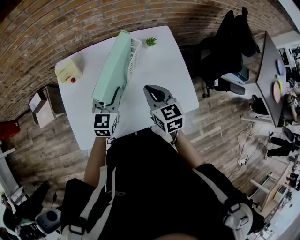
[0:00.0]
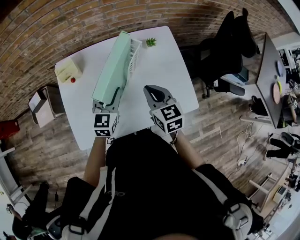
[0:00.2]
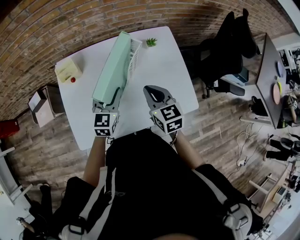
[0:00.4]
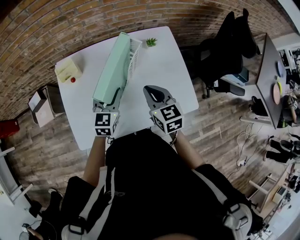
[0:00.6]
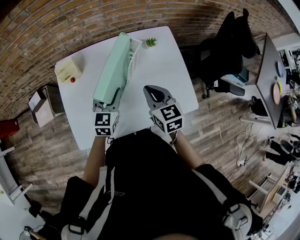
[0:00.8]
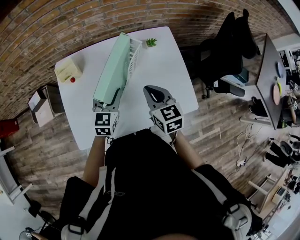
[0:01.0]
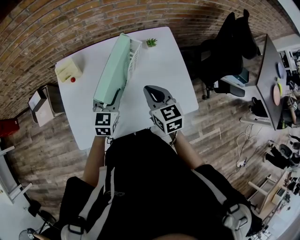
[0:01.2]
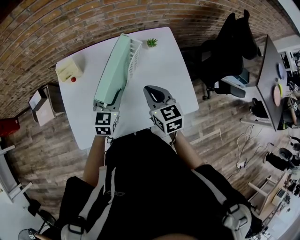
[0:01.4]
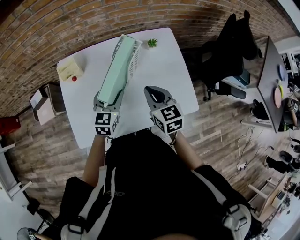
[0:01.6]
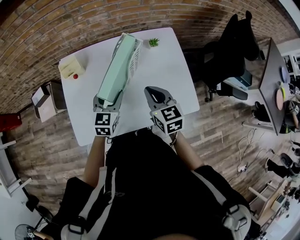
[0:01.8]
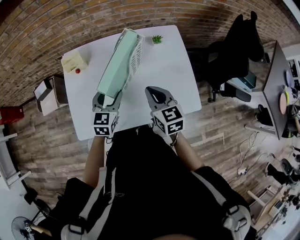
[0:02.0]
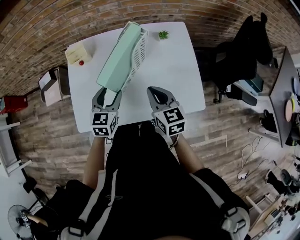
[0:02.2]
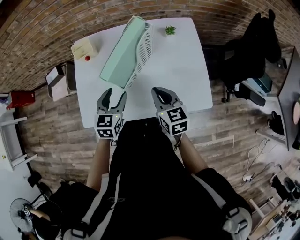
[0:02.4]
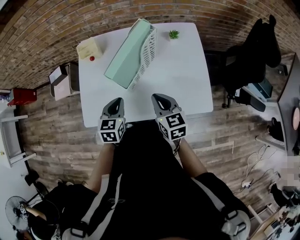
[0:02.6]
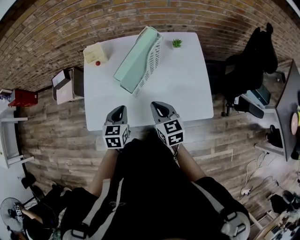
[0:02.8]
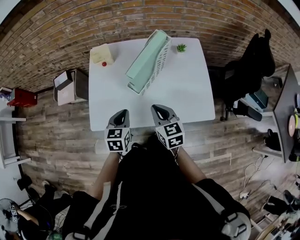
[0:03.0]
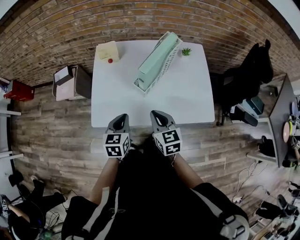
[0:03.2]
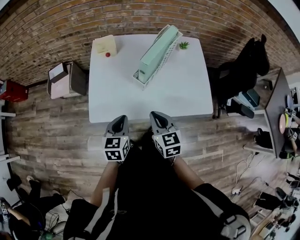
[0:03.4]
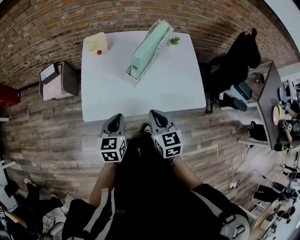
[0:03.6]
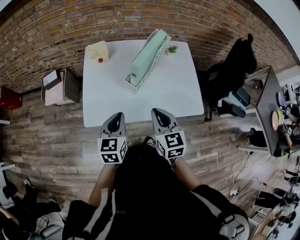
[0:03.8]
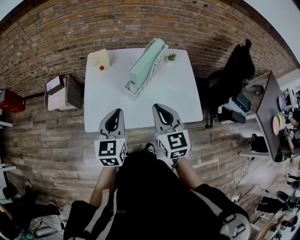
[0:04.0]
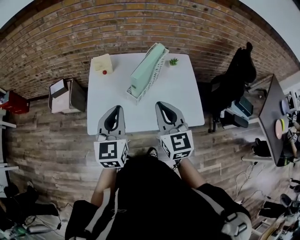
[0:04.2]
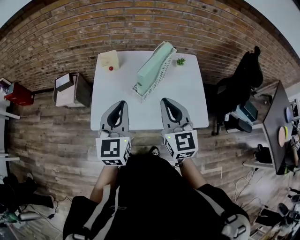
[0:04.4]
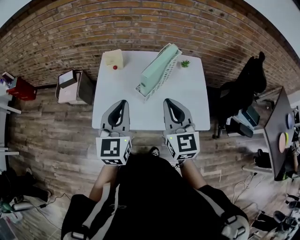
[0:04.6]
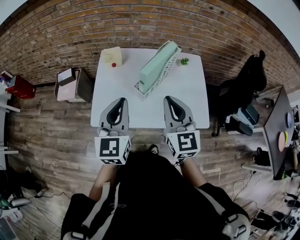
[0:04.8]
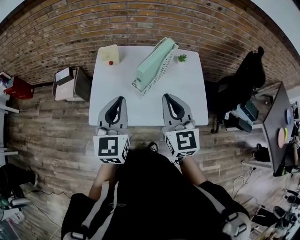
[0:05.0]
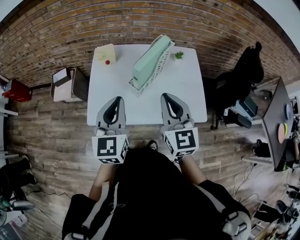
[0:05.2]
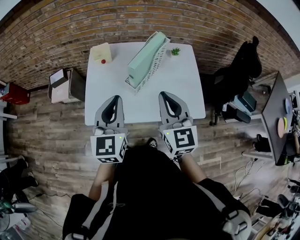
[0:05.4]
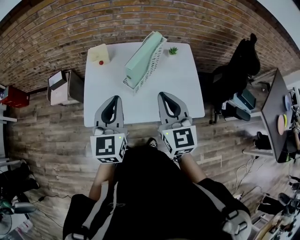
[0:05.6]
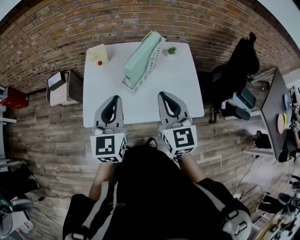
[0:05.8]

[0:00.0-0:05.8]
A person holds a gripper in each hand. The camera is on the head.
0:00.0 to 0:01.4: The grippers stay close to where they were, moving slightly.
0:01.4 to 0:02.8: The right gripper goes some 10 cm backward, while the left gripper moves backward and to the left, about 15 cm, swivels some 20 degrees, and closes.
0:02.8 to 0:04.4: Both grippers move upward, some 20 cm. The right gripper rotates roughly 30 degrees, while the left gripper angles its fingers upward, by about 30 degrees.
0:04.4 to 0:05.8: The grippers move only a little.

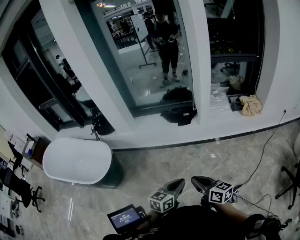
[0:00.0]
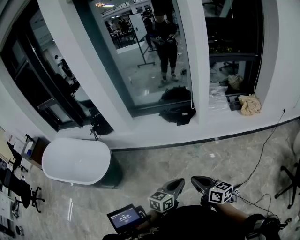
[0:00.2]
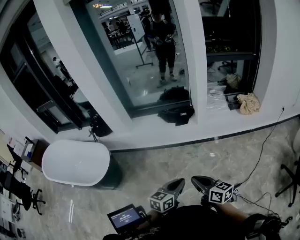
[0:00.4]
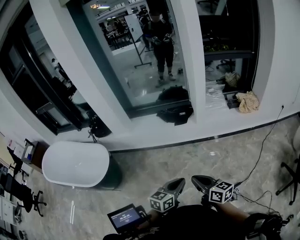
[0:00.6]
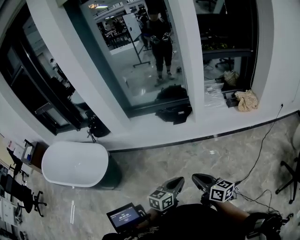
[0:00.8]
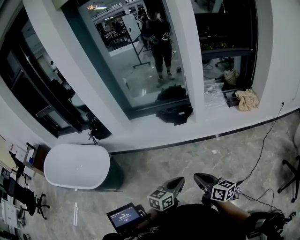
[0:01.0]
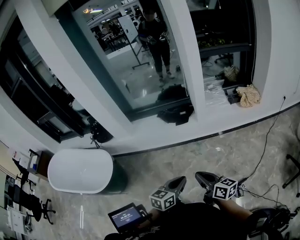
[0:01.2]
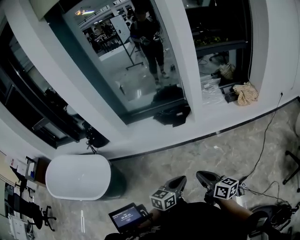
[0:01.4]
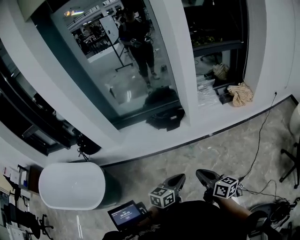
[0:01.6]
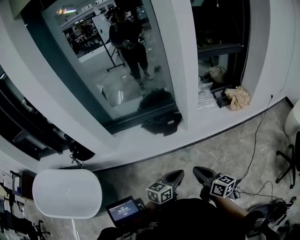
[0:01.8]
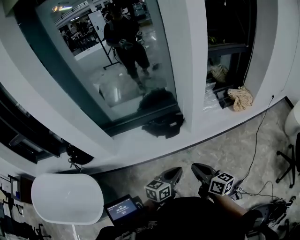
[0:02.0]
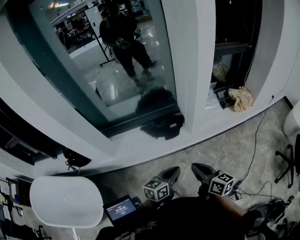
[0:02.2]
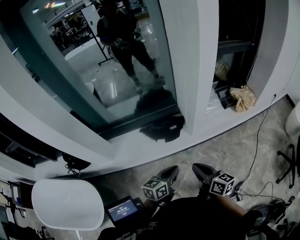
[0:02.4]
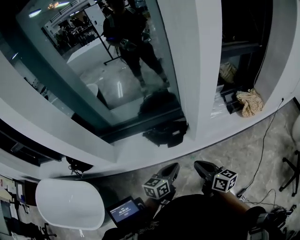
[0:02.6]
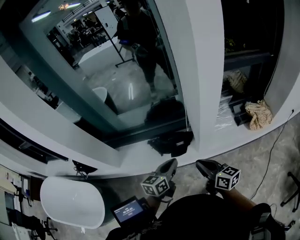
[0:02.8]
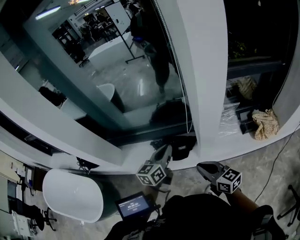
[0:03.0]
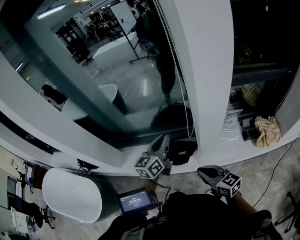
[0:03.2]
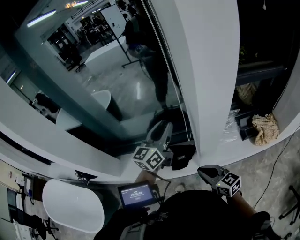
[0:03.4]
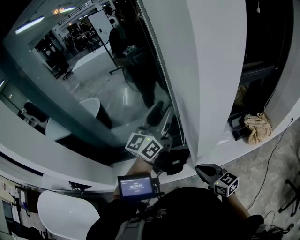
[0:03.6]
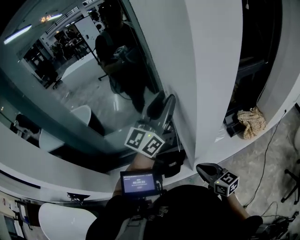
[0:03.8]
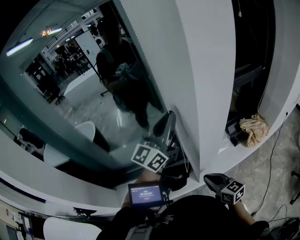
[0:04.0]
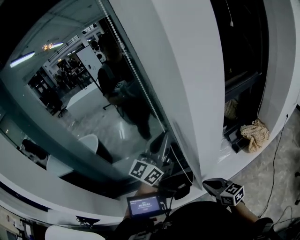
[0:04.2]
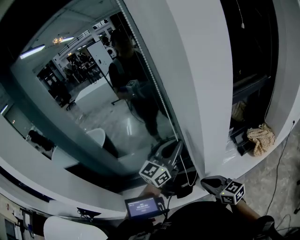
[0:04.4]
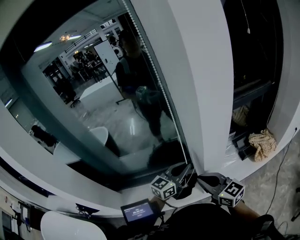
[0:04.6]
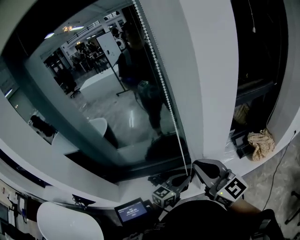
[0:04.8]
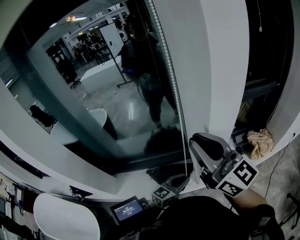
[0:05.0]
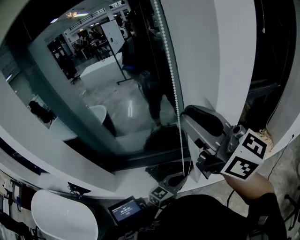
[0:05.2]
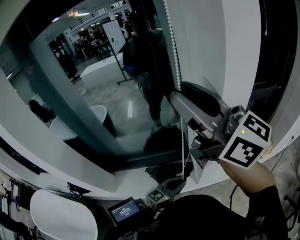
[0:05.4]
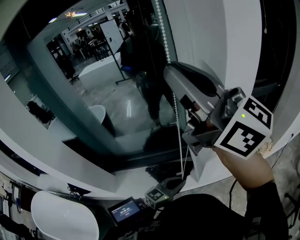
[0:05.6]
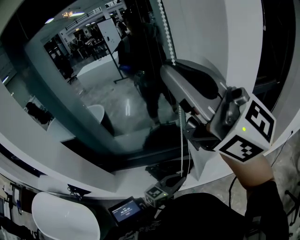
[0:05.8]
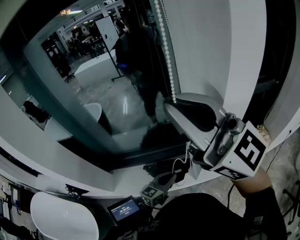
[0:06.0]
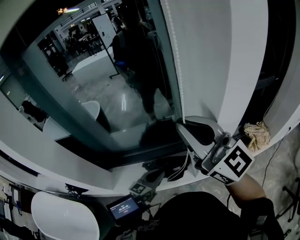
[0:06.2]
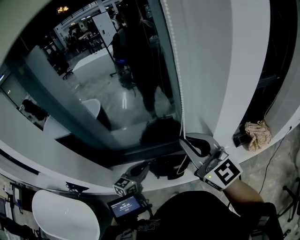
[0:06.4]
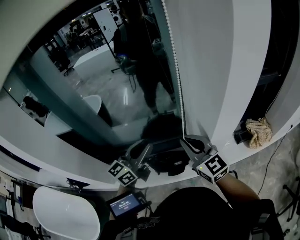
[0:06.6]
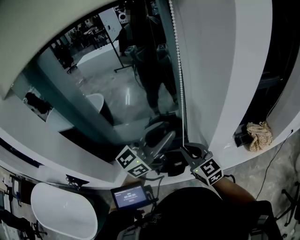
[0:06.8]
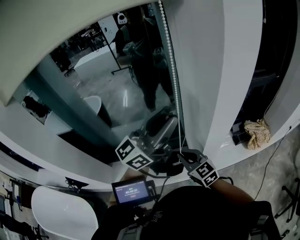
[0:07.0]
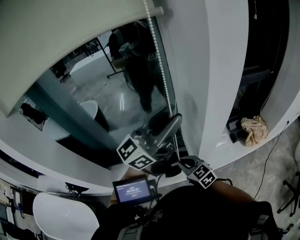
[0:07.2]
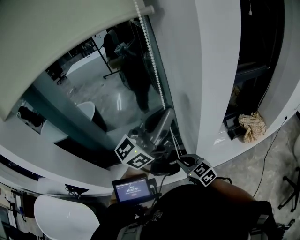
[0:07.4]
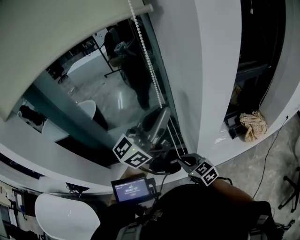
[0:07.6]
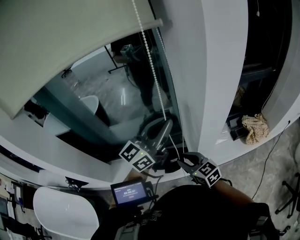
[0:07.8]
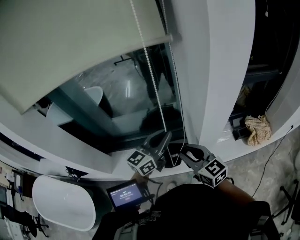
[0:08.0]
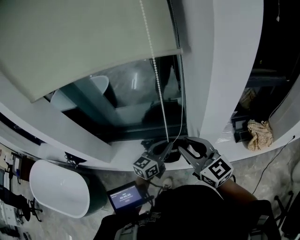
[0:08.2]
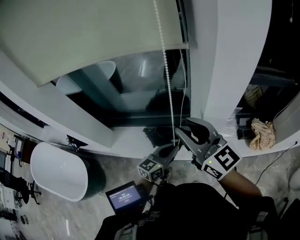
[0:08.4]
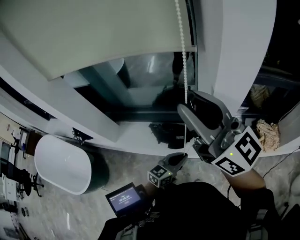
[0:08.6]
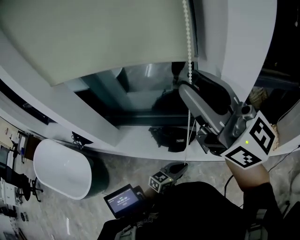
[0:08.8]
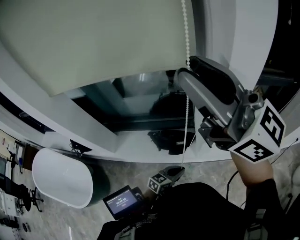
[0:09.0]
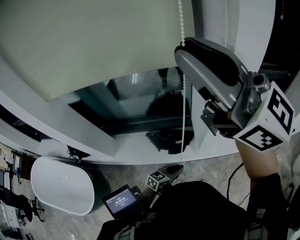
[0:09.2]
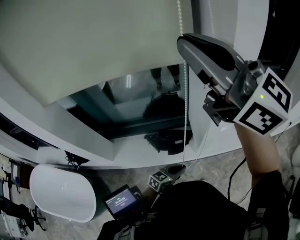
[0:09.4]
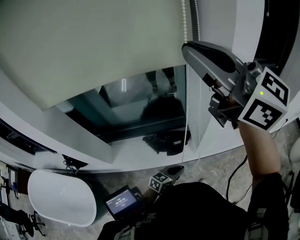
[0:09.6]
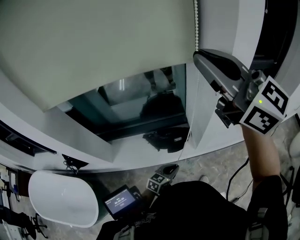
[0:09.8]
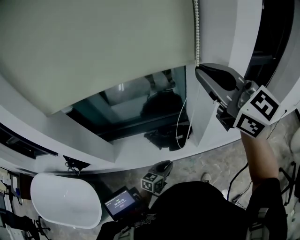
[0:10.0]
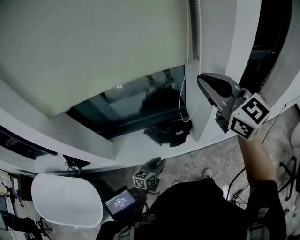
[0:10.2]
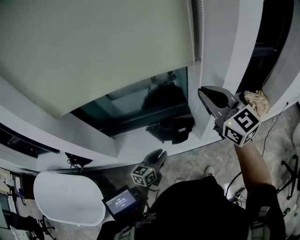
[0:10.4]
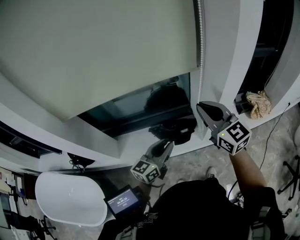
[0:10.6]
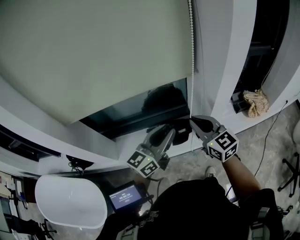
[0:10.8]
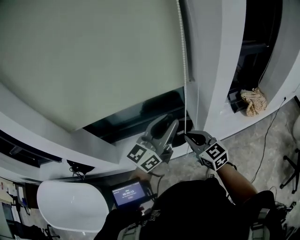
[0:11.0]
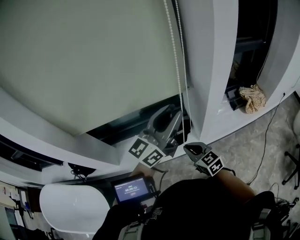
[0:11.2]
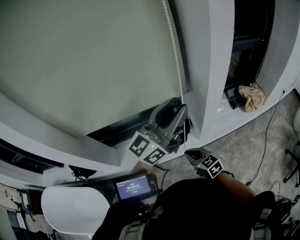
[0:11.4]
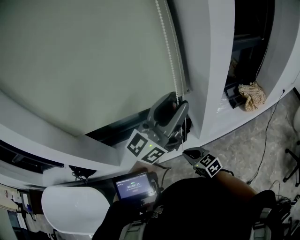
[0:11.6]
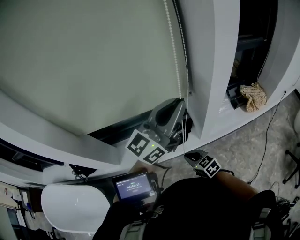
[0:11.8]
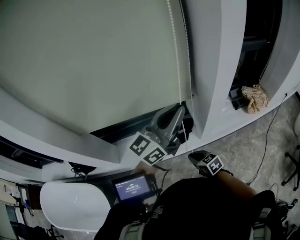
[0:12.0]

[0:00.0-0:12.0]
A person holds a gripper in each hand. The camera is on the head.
0:00.0 to 0:01.6: The grippers both shift forward by some 15 cm.
0:01.6 to 0:03.0: The left gripper ends up about 50 cm from where it was, and swivels approximately 20 degrees, while the right gripper moves some 40 cm, and swivels roughly 20 degrees.
0:03.0 to 0:04.4: The left gripper changes place by some 20 cm, rotates about 40 degrees, and opens and closes again; the right gripper changes place by approximately 10 cm.
0:04.4 to 0:06.0: The left gripper heads downward and backward, covering roughly 25 cm, and swivels some 30 degrees; the right gripper is displaced upward by some 40 cm, points its fingers roughly 40 degrees further upward, and opens and closes again.
0:06.0 to 0:07.6: The left gripper heads upward, covering about 35 cm, points its fingers some 40 degrees further upward, and opens, then closes once more; the right gripper heads downward, covering about 50 cm, and angles its fingers downward, by about 50 degrees.
0:07.6 to 0:09.0: The right gripper moves upward, roughly 50 cm, tilts its fingers some 50 degrees upward, and opens, while the left gripper moves downward, roughly 40 cm, and tips its fingers downward by about 50 degrees.
0:09.0 to 0:10.4: The left gripper moves to the left, about 15 cm, and opens its fingers, while the right gripper moves downward, roughly 20 cm, turns by roughly 40 degrees, and closes.
0:10.4 to 0:12.0: The left gripper goes roughly 35 cm upward and to the right, tips its fingers upward by about 30 degrees, and closes. Meanwhile the right gripper is displaced downward by about 40 cm, and points its fingers approximately 40 degrees further downward.

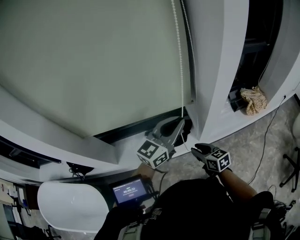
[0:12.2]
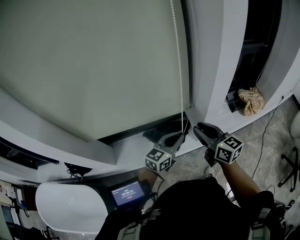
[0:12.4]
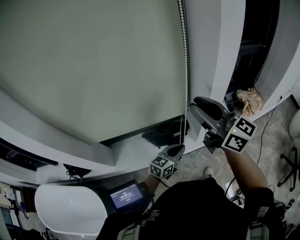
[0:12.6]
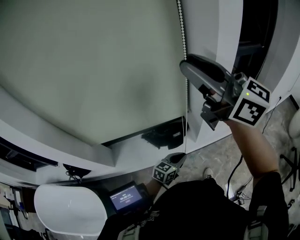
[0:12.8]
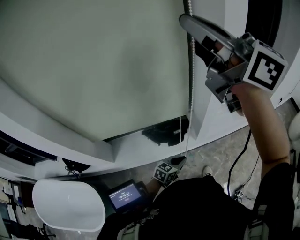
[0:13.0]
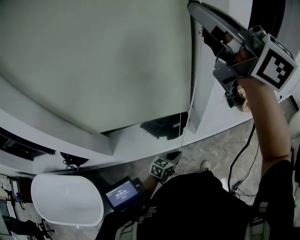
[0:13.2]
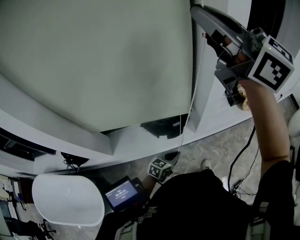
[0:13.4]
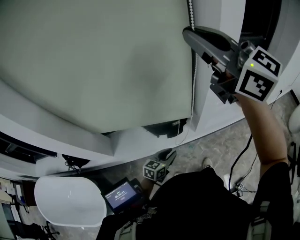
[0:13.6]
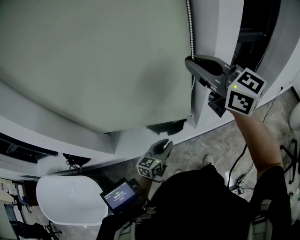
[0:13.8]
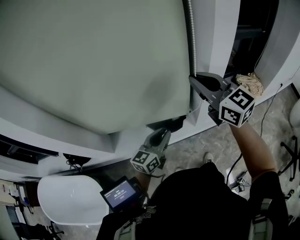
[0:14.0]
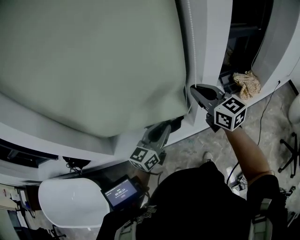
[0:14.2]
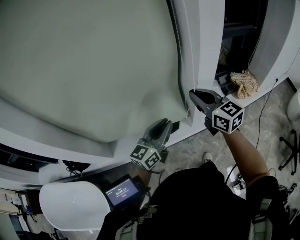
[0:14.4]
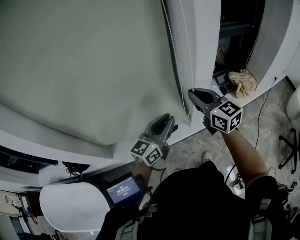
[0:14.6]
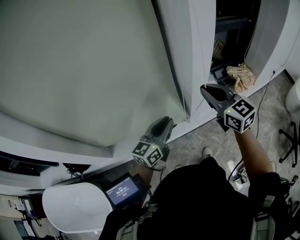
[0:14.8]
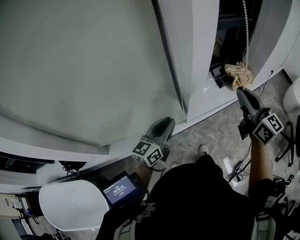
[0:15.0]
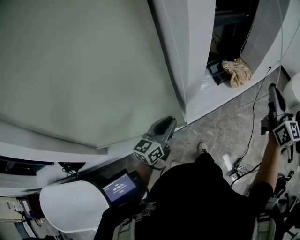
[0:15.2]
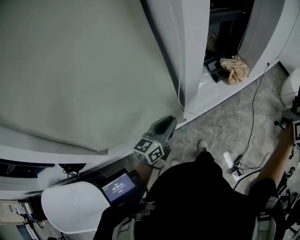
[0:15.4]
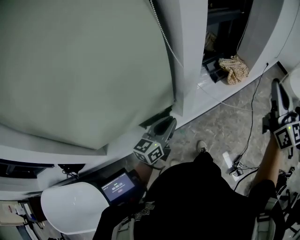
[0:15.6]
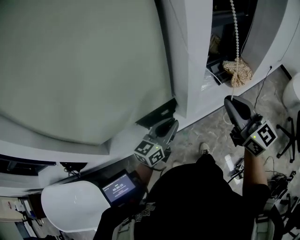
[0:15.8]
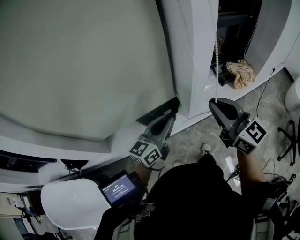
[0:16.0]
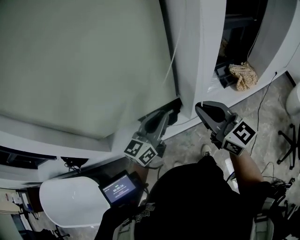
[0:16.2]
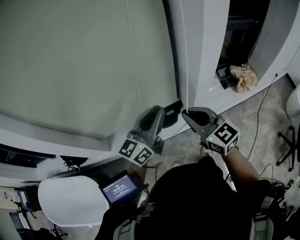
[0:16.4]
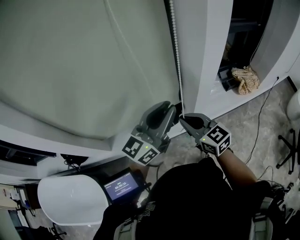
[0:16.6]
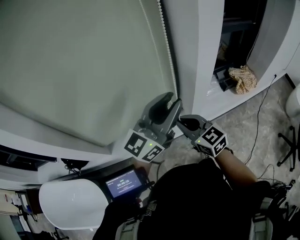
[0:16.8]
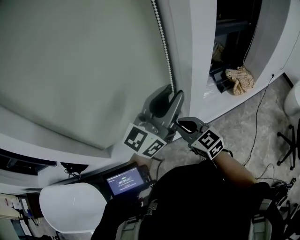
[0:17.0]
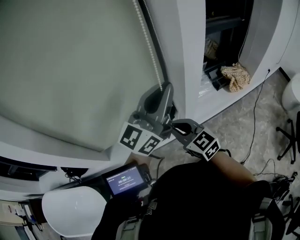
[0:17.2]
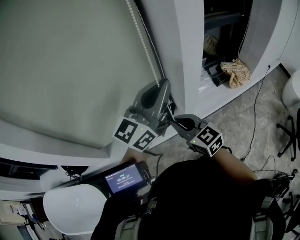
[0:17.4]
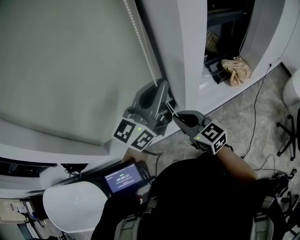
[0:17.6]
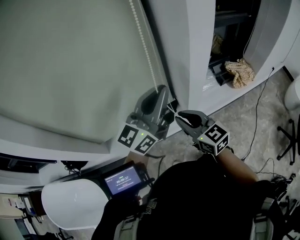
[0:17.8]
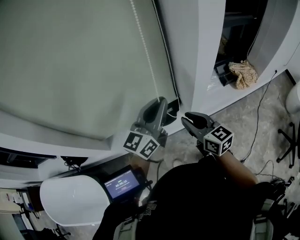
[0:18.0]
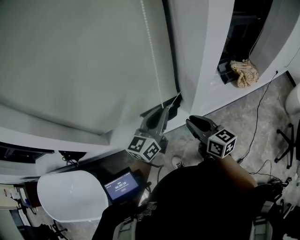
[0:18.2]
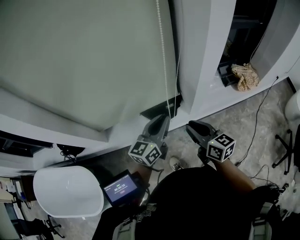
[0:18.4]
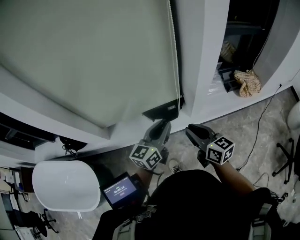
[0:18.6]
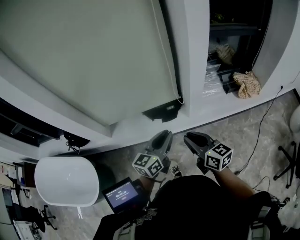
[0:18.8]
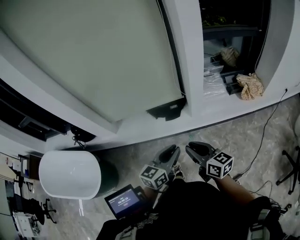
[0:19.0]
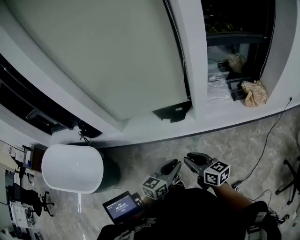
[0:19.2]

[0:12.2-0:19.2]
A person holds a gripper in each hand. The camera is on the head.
0:12.2 to 0:13.6: The left gripper travels downward by roughly 30 cm, turns by roughly 30 degrees, and opens; the right gripper is displaced upward by roughly 50 cm, tilts its fingers about 40 degrees upward, and closes up.
0:13.6 to 0:15.0: The right gripper shifts some 35 cm downward and to the right, and turns by approximately 40 degrees. The left gripper heads upward, covering approximately 20 cm, and changes its angle by roughly 20 degrees.
0:15.0 to 0:16.4: The left gripper moves upward, about 10 cm. The right gripper moves approximately 25 cm, and changes its angle by about 30 degrees.
0:16.4 to 0:17.8: The left gripper goes some 10 cm upward and to the right.
0:17.8 to 0:19.2: The left gripper shifts some 40 cm backward and downward, and points its fingers roughly 30 degrees further downward. Meanwhile the right gripper moves backward, about 25 cm, and rotates approximately 30 degrees.
